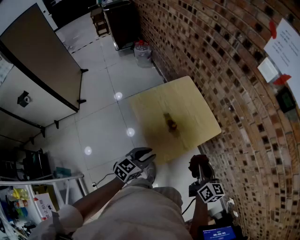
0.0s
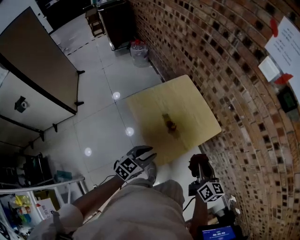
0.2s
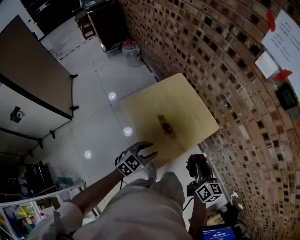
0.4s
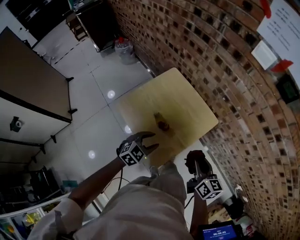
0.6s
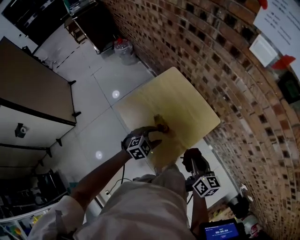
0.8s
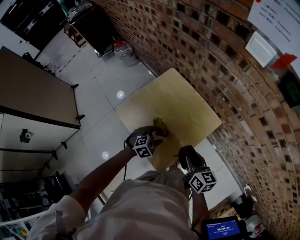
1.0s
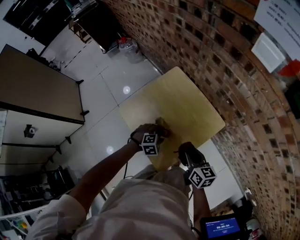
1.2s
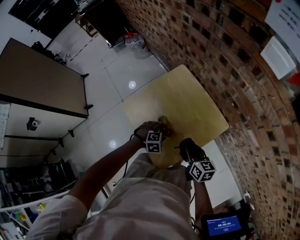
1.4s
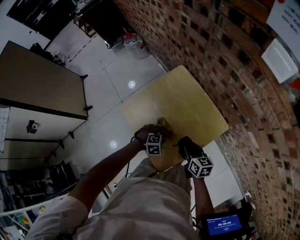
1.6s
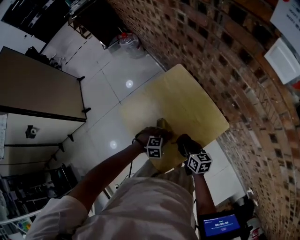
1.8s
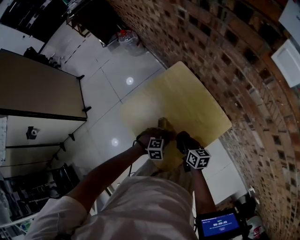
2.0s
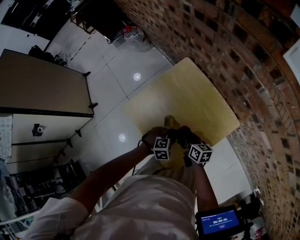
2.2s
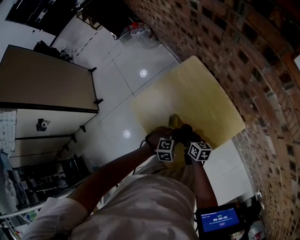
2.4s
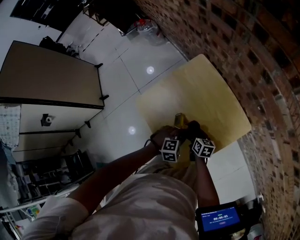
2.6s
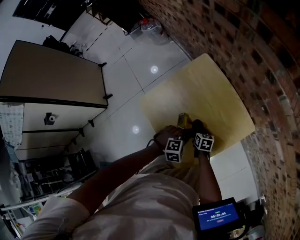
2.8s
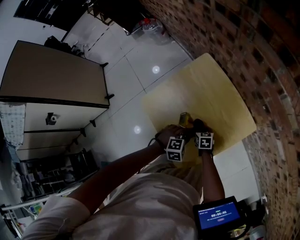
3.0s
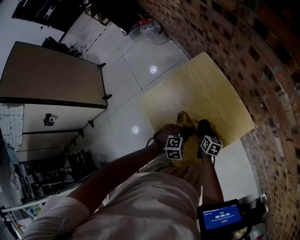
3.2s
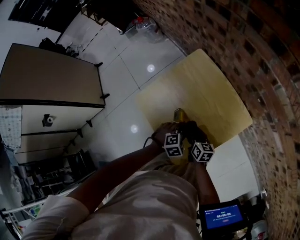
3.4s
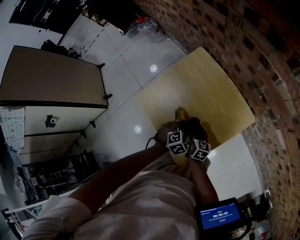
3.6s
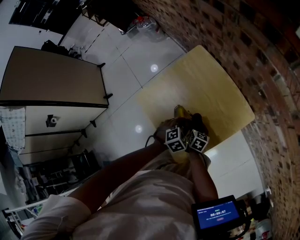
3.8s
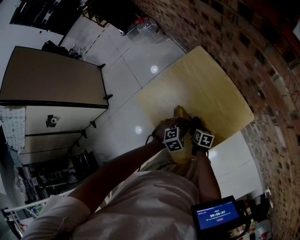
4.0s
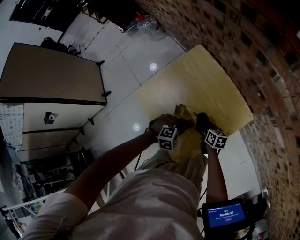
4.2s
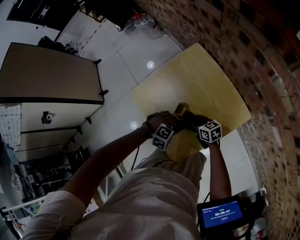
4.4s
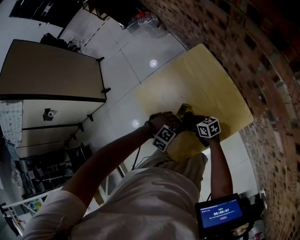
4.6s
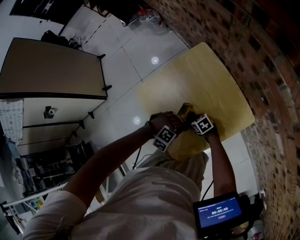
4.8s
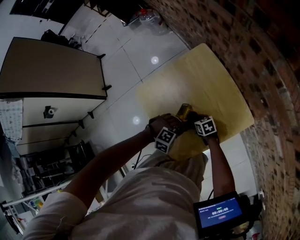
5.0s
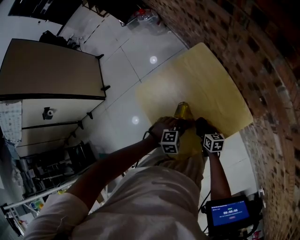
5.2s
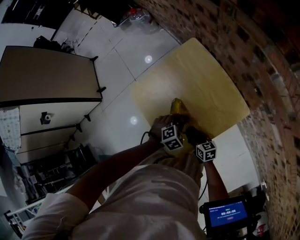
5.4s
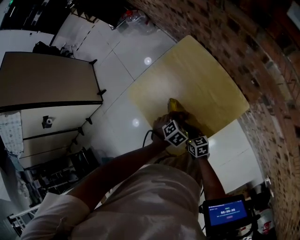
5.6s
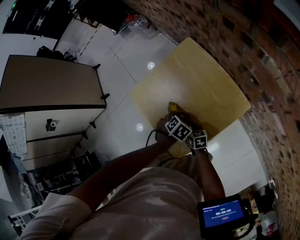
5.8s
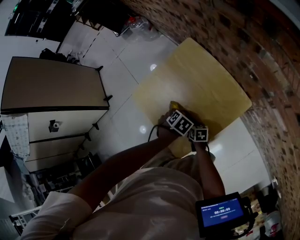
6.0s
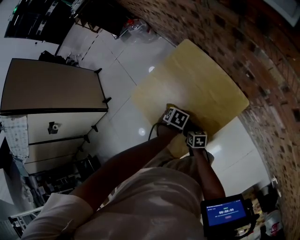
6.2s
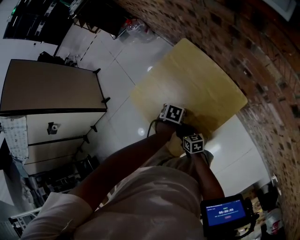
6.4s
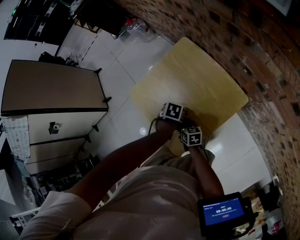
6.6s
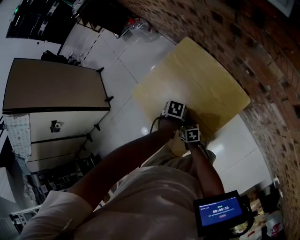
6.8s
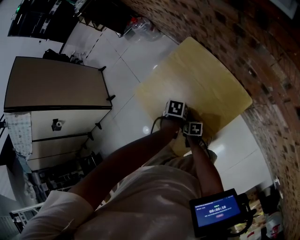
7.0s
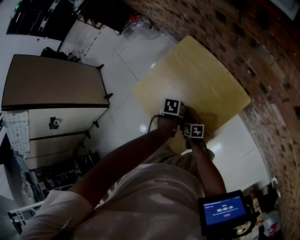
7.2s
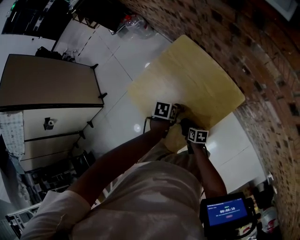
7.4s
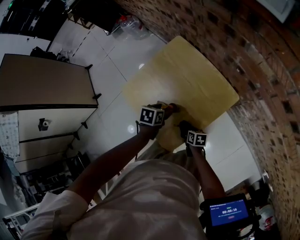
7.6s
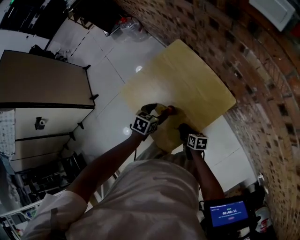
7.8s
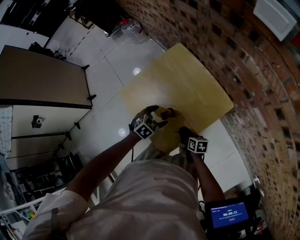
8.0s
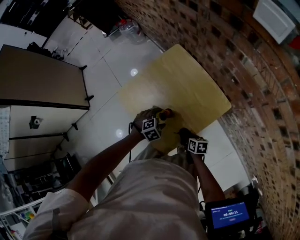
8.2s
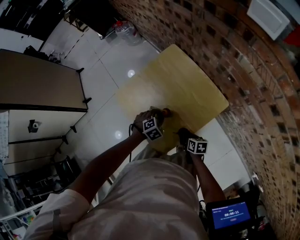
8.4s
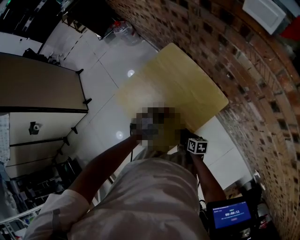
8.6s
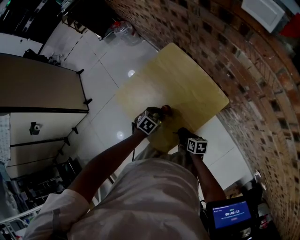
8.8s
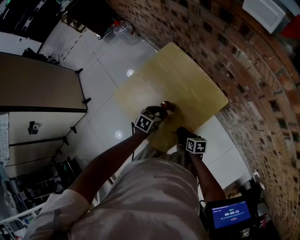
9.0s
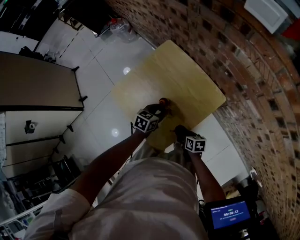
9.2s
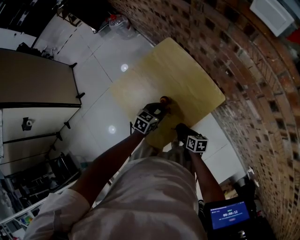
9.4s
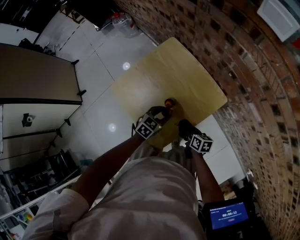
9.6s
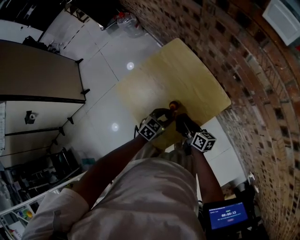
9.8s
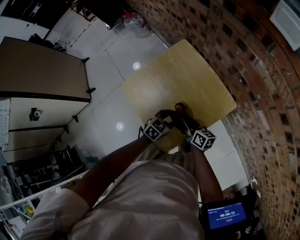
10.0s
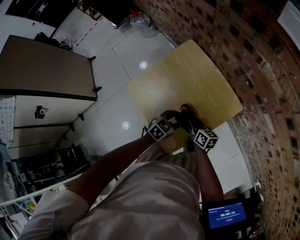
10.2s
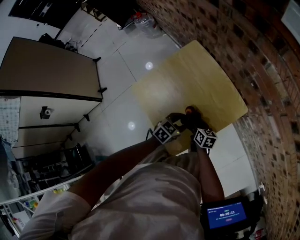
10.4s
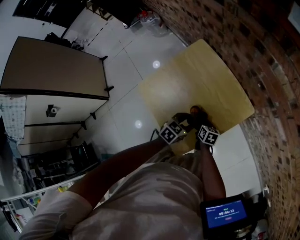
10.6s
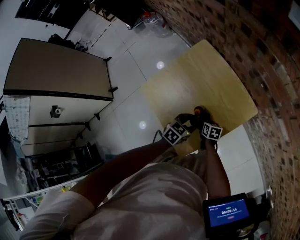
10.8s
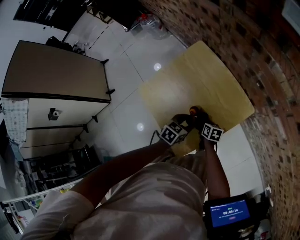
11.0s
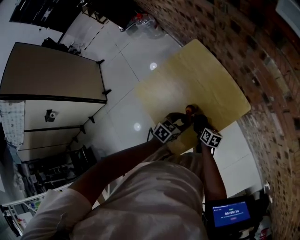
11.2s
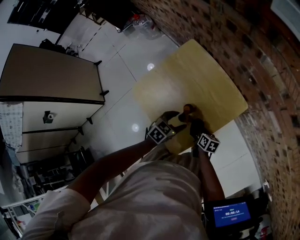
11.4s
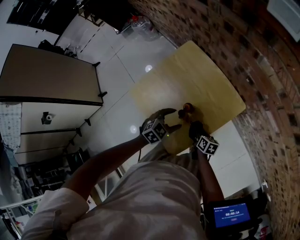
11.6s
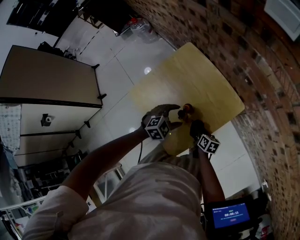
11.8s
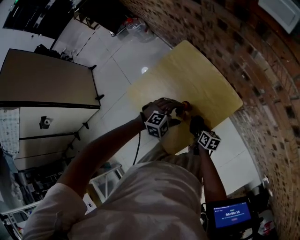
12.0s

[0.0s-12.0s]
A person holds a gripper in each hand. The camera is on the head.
0.0s to 1.6s: The left gripper ends up about 30 cm from where it was, points its fingers roughly 50 degrees further downward, and opens. Meanwhile the right gripper shifts by roughly 25 cm.
1.6s to 3.0s: The right gripper heads downward, covering about 20 cm, and swivels about 20 degrees.
3.0s to 4.4s: The right gripper moves up and down over approximately 10 cm, changing direction 2 times, and changes its angle by some 30 degrees; the left gripper turns by roughly 30 degrees.
4.4s to 6.0s: The left gripper changes place by about 5 cm, and twists about 70 degrees counterclockwise, seen from behind; the right gripper swings up and down, some 10 cm each way, with 2 reversals, and turns by about 30 degrees.
6.0s to 7.6s: The right gripper changes place by about 10 cm. The left gripper swivels some 30 degrees.
7.6s to 9.0s: The left gripper rotates approximately 20 degrees, while the right gripper ends up roughly 5 cm from where it was.
9.0s to 10.4s: The right gripper is displaced forward by some 10 cm, and reaches some 10 cm upward, then returns.
10.4s to 12.0s: The left gripper rolls clockwise, seen from behind, by roughly 60 degrees, and opens. The right gripper is displaced to the right by some 5 cm, and reaches some 10 cm downward, then returns.

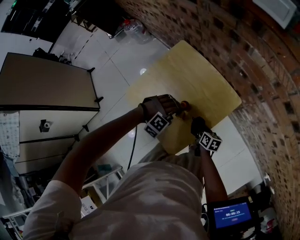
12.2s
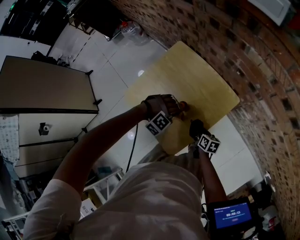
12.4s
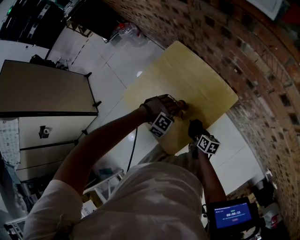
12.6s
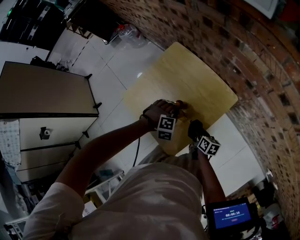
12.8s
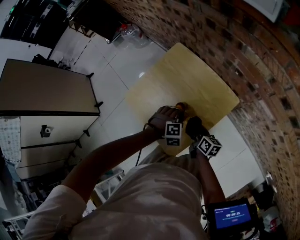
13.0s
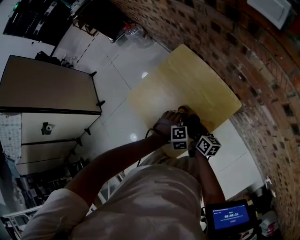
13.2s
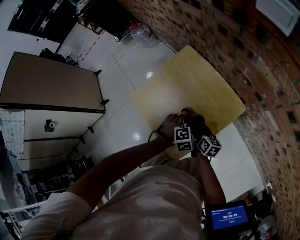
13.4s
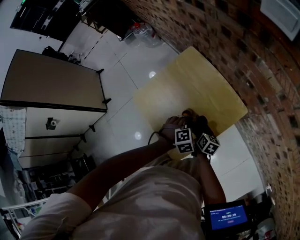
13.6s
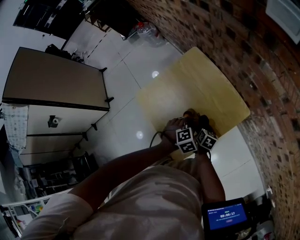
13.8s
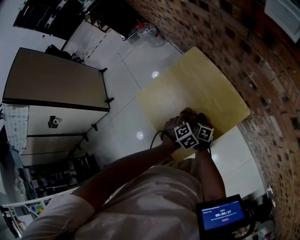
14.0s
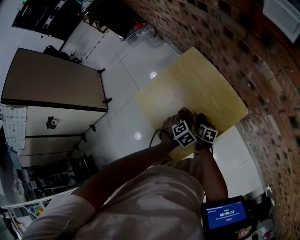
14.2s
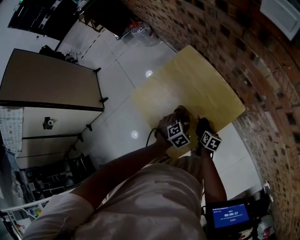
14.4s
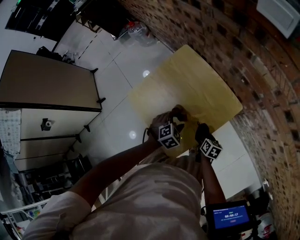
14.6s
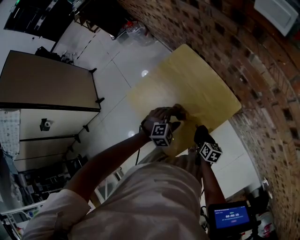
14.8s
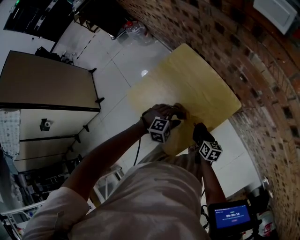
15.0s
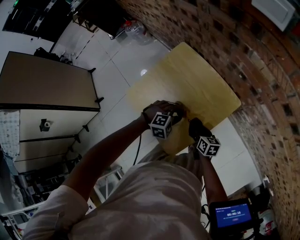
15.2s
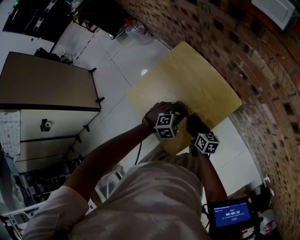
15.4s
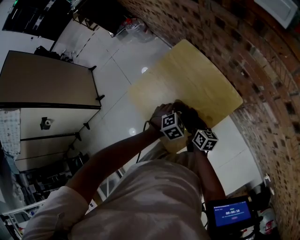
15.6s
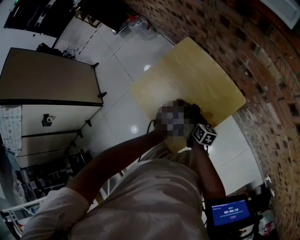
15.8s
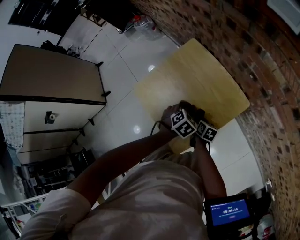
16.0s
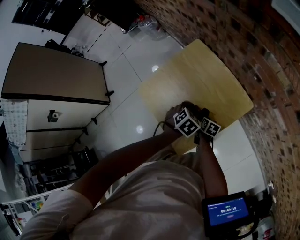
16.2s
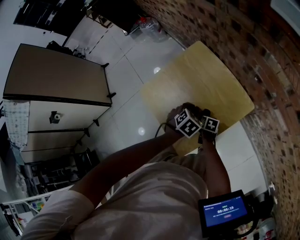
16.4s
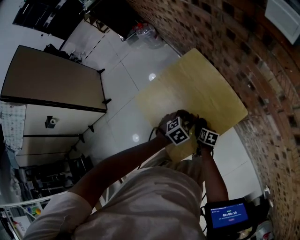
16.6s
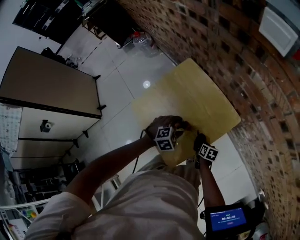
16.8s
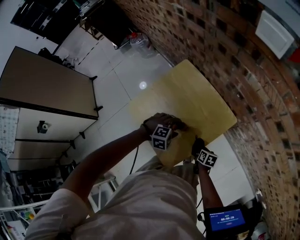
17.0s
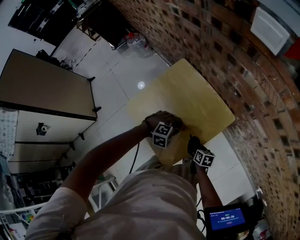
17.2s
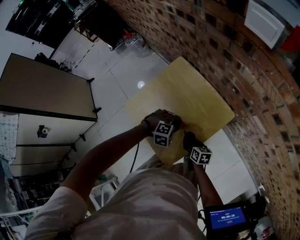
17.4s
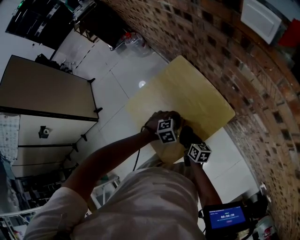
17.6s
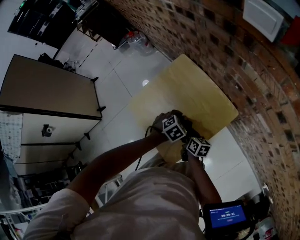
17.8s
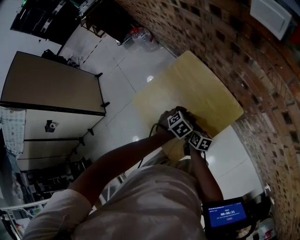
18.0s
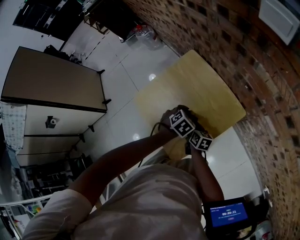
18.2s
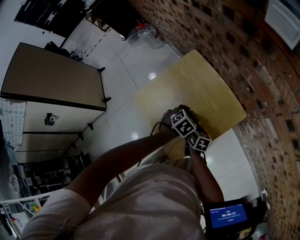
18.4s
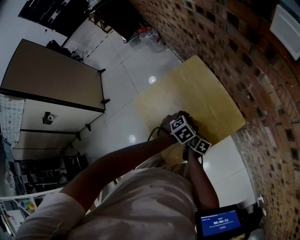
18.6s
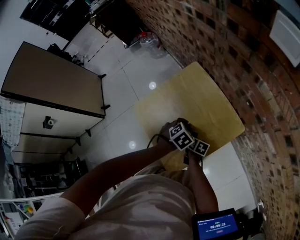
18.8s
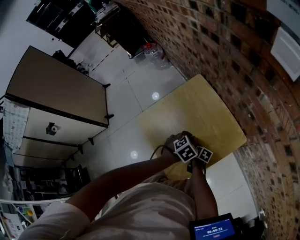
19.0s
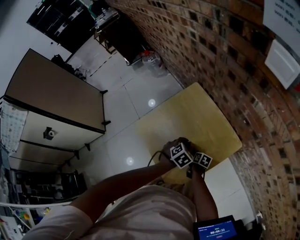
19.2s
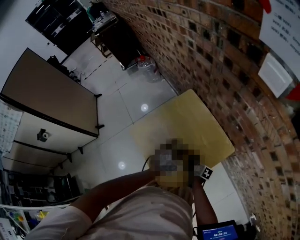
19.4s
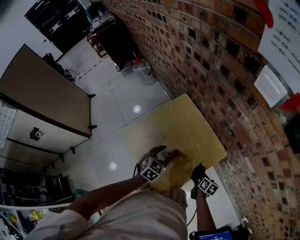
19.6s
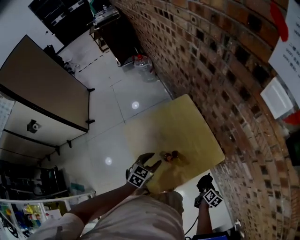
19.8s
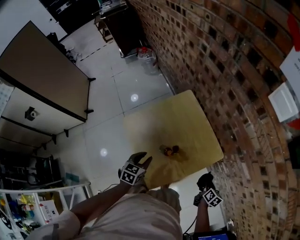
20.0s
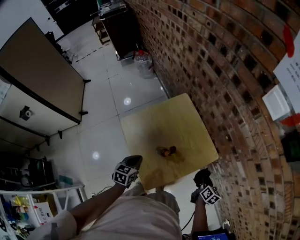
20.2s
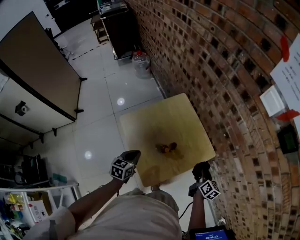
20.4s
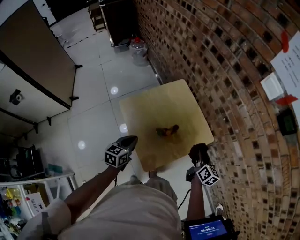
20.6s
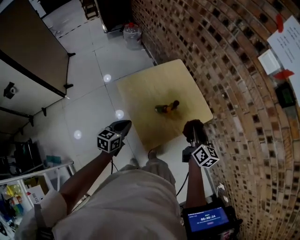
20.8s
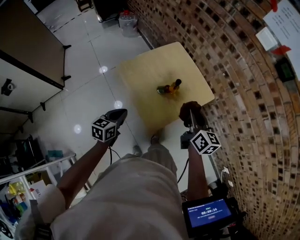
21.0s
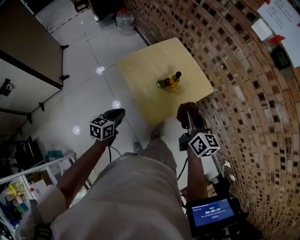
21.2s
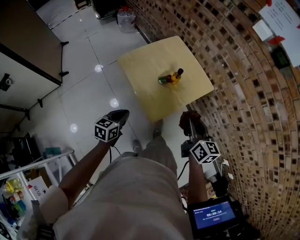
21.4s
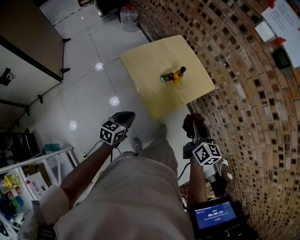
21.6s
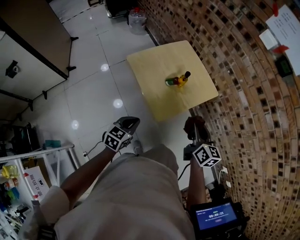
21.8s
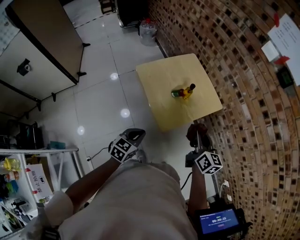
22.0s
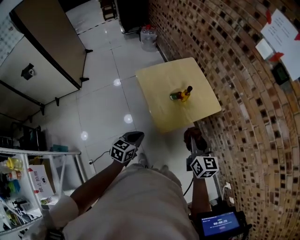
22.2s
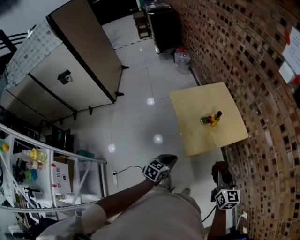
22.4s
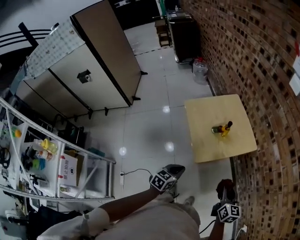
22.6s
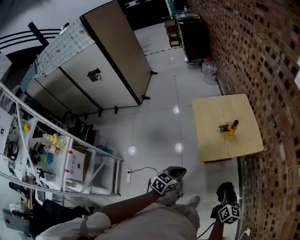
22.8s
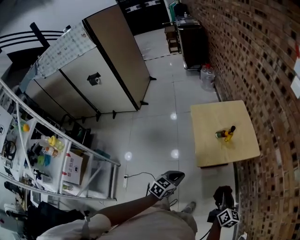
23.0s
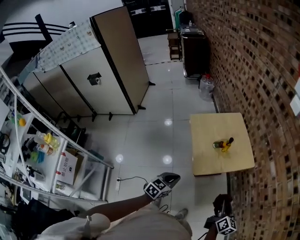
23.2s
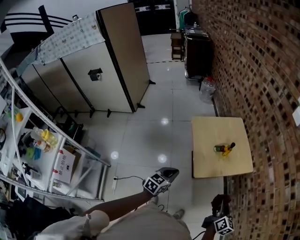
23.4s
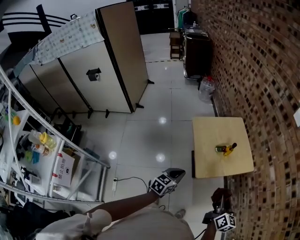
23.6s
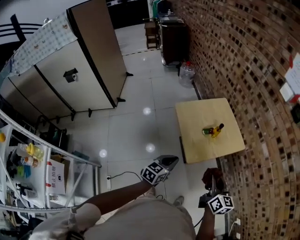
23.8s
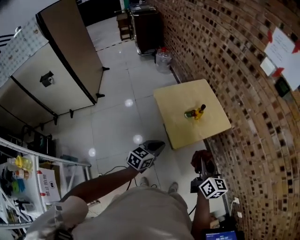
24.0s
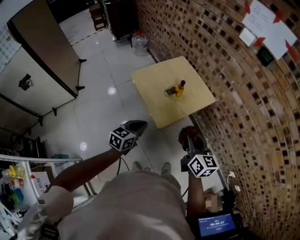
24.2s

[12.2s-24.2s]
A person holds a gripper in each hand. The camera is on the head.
12.2s to 13.8s: The right gripper travels upward and back again, roughly 10 cm each way. Meanwhile the left gripper twists some 70 degrees counterclockwise, seen from behind, and closes up.
13.8s to 15.2s: The left gripper rotates roughly 30 degrees, while the right gripper shifts about 5 cm upward.
15.2s to 16.6s: The left gripper twists roughly 40 degrees counterclockwise, seen from behind. Meanwhile the right gripper shifts about 10 cm downward.
16.6s to 18.2s: The right gripper travels upward by approximately 10 cm, and swivels roughly 20 degrees.
18.2s to 19.8s: The right gripper moves to the right and backward, roughly 25 cm. Meanwhile the left gripper is displaced to the left and upward by some 10 cm, and swivels roughly 40 degrees.
19.8s to 21.2s: The right gripper travels upward and to the left by approximately 40 cm, and changes its angle by roughly 40 degrees. Meanwhile the left gripper goes roughly 30 cm backward and to the left, rotates about 20 degrees, and closes.
21.2s to 22.6s: The right gripper heads backward and to the right, covering some 20 cm. Meanwhile the left gripper travels to the right and backward by about 20 cm.
22.6s to 24.2s: The left gripper goes approximately 10 cm to the left and upward; the right gripper shifts about 15 cm to the left and upward.
